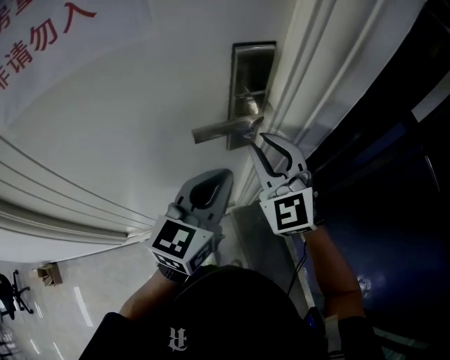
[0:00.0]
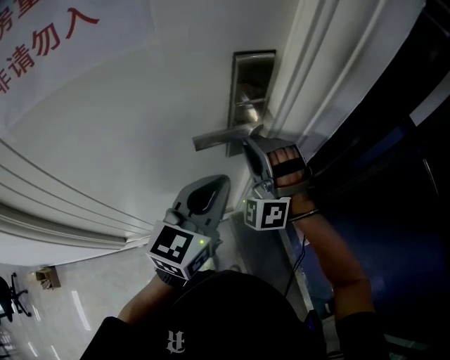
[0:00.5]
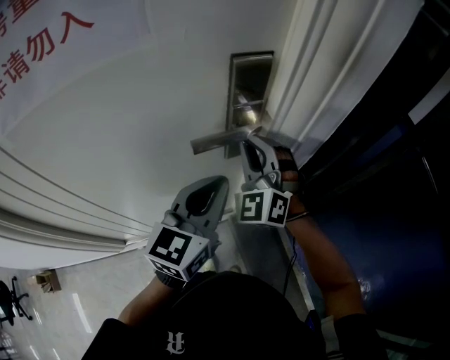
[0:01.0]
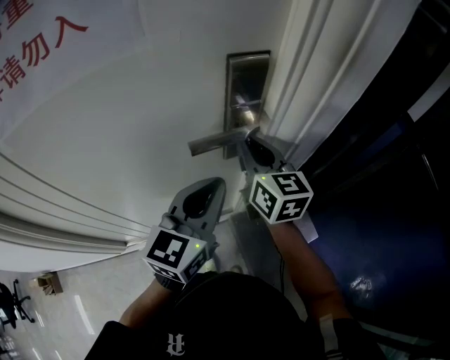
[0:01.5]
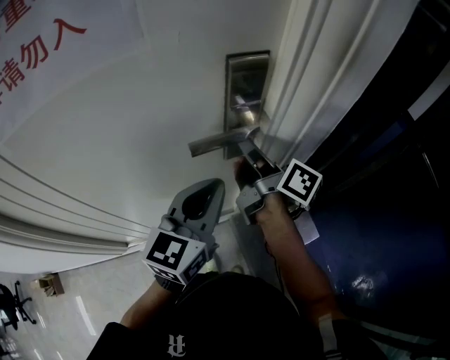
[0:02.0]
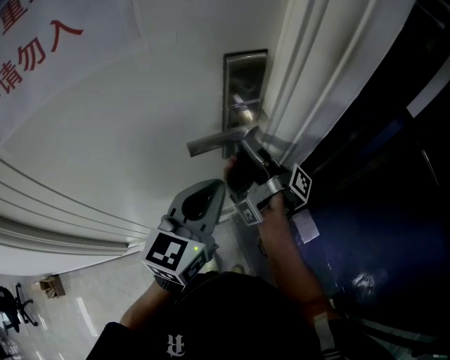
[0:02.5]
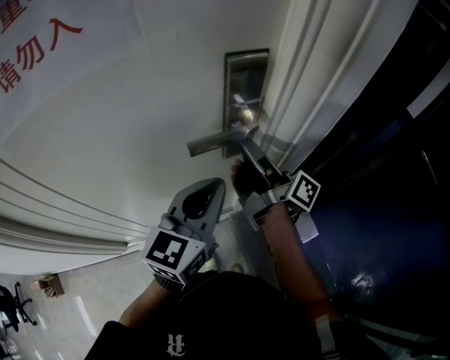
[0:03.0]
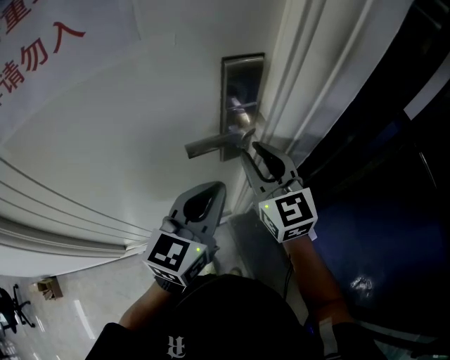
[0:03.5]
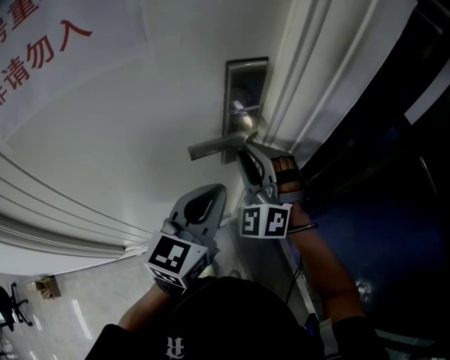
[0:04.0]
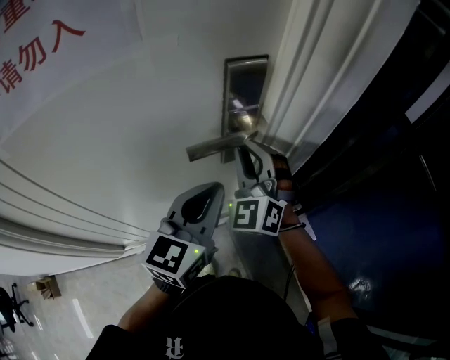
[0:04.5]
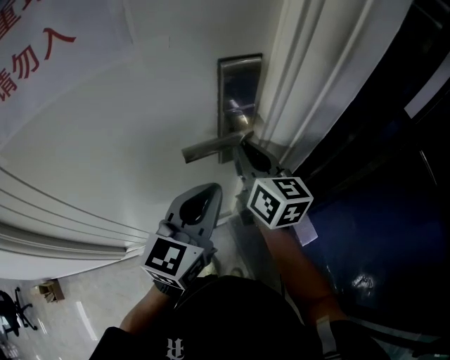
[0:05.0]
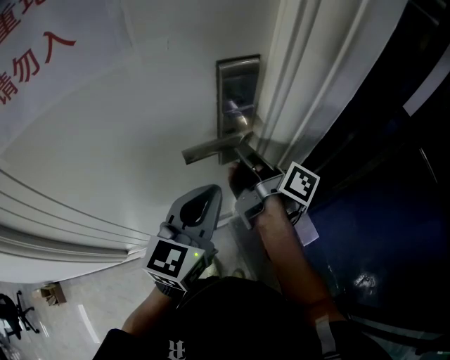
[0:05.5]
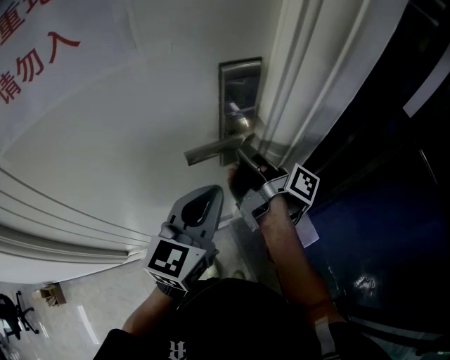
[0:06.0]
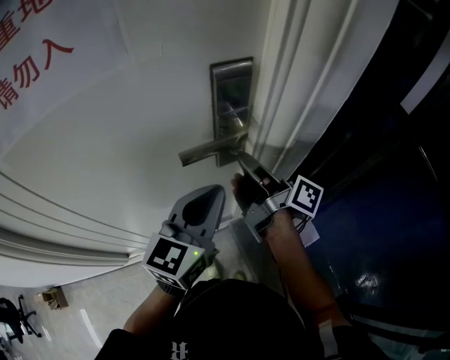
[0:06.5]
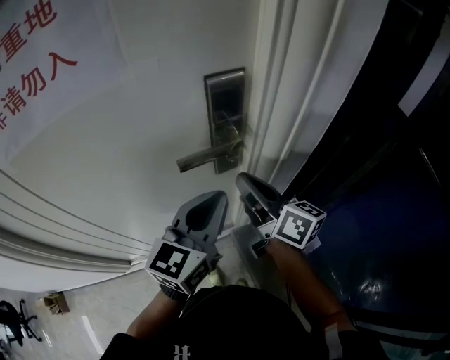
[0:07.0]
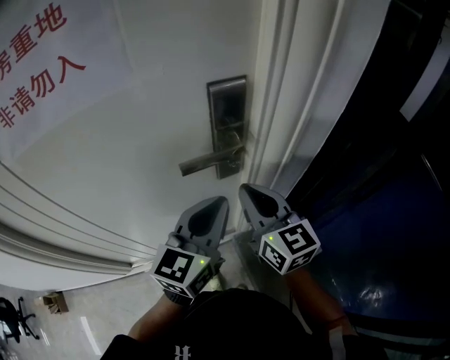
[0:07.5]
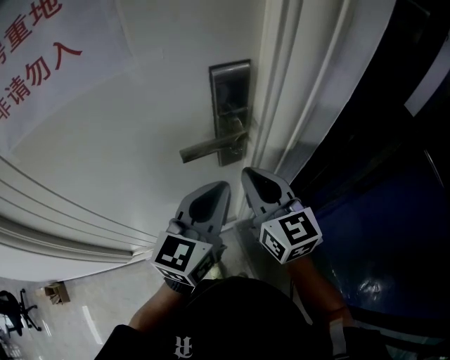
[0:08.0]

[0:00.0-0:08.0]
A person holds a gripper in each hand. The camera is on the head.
0:00.0 to 0:02.0: The right gripper heads forward, covering roughly 5 cm, and twists some 100 degrees clockwise, seen from behind.
0:02.0 to 0:04.0: The right gripper rolls counterclockwise, seen from behind, by about 130 degrees.
0:04.0 to 0:06.0: The right gripper rotates around the line of its fingers by some 150 degrees, clockwise from behind.
0:06.0 to 0:08.0: The right gripper heads backward, covering some 10 cm, and rotates around the line of its fingers by roughly 80 degrees, counterclockwise from behind.

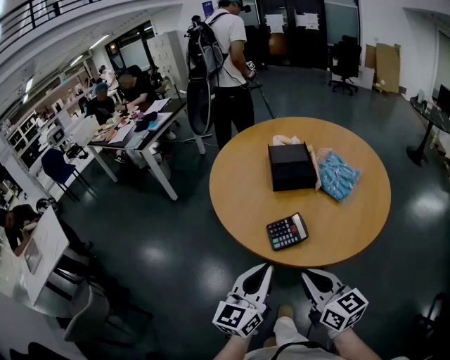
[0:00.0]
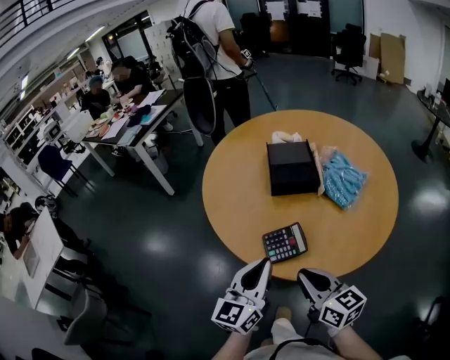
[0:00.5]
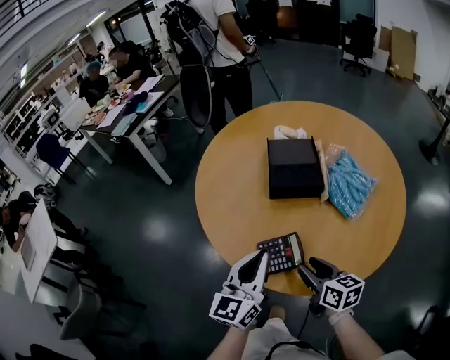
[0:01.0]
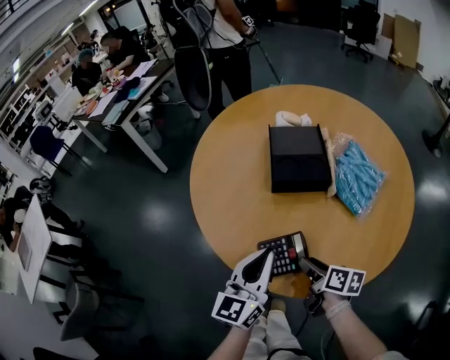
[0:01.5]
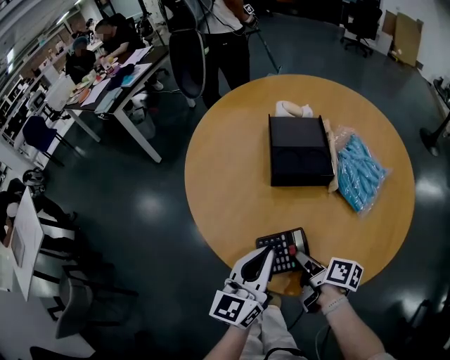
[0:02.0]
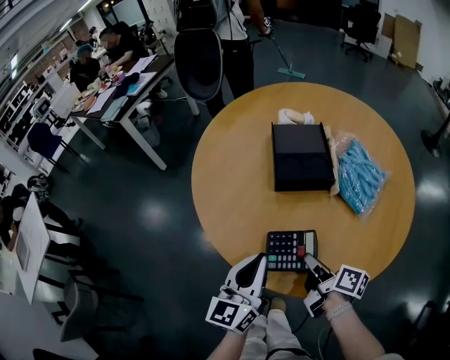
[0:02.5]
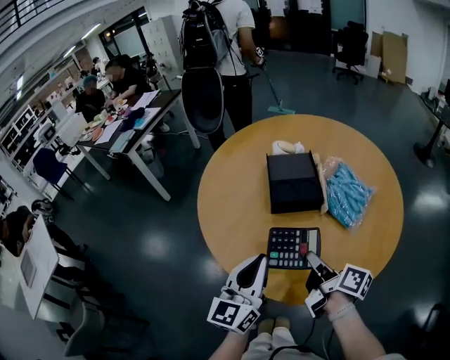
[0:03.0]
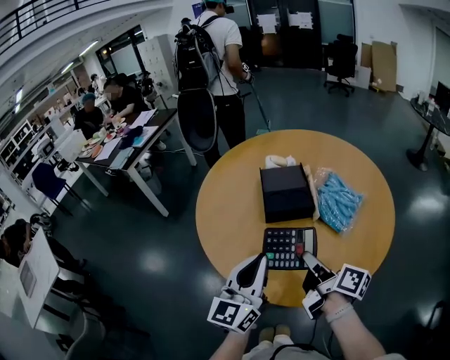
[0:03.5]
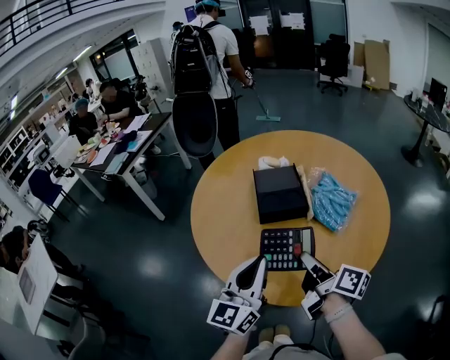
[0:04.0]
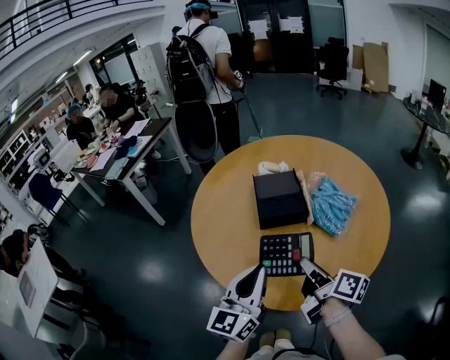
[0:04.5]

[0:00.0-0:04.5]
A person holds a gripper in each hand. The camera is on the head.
0:00.0 to 0:02.0: The grippers both shift forward and downward by approximately 25 cm. The right gripper rolls clockwise, seen from behind, by some 50 degrees, and opens up.
0:02.0 to 0:04.5: The left gripper moves upward, approximately 10 cm; the right gripper shifts roughly 20 cm upward, and rotates some 30 degrees.

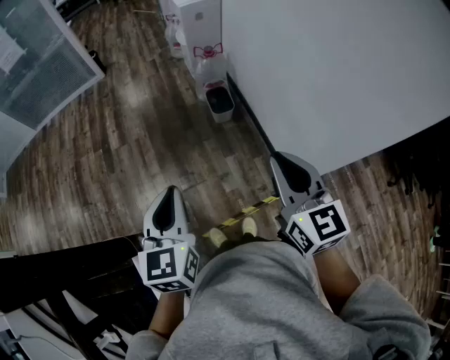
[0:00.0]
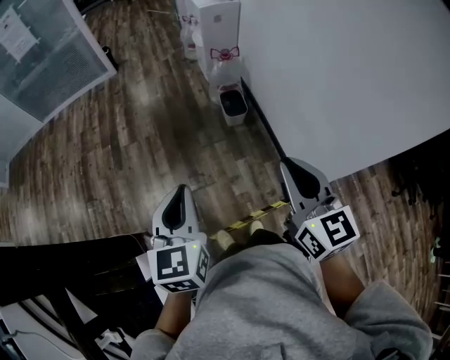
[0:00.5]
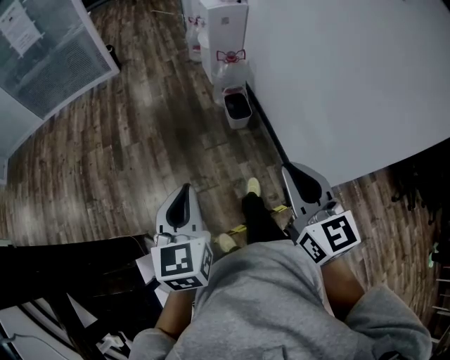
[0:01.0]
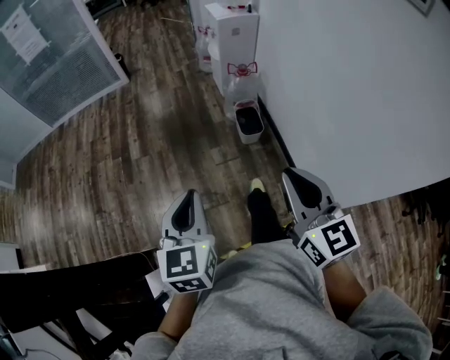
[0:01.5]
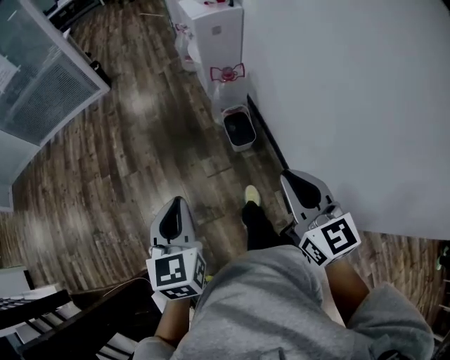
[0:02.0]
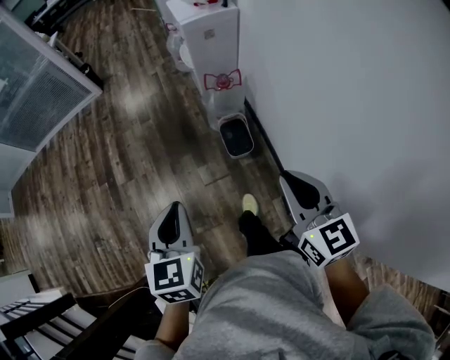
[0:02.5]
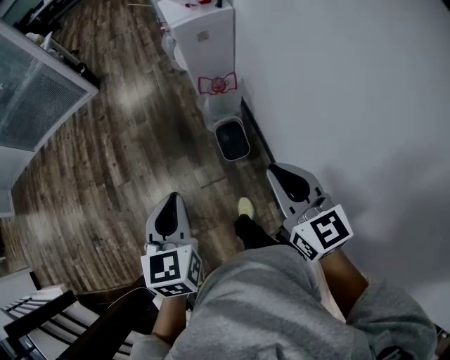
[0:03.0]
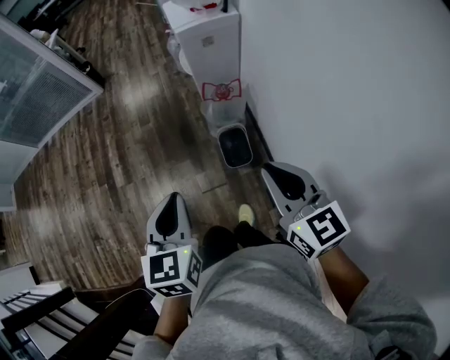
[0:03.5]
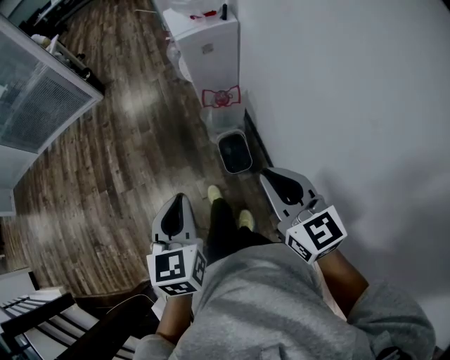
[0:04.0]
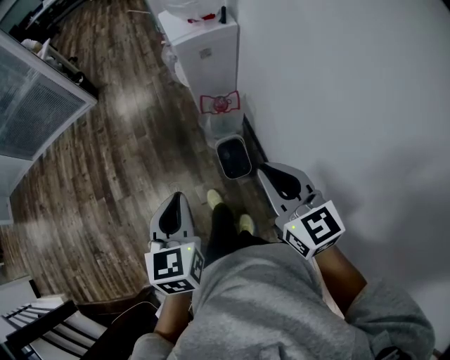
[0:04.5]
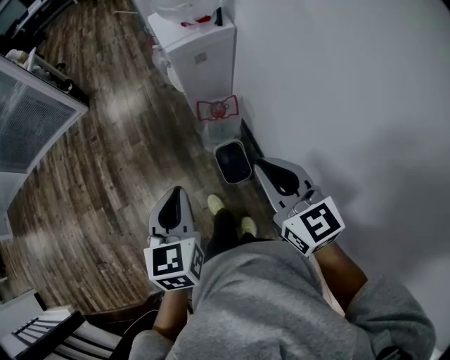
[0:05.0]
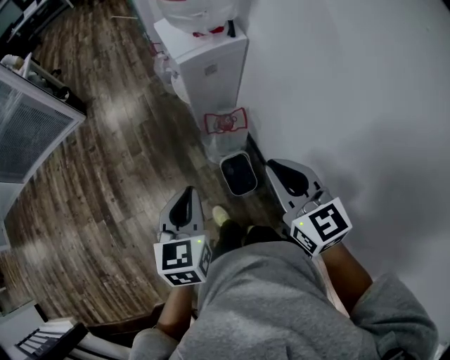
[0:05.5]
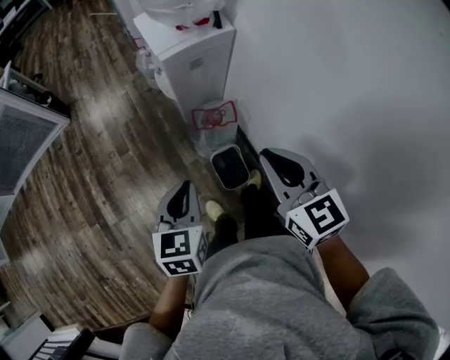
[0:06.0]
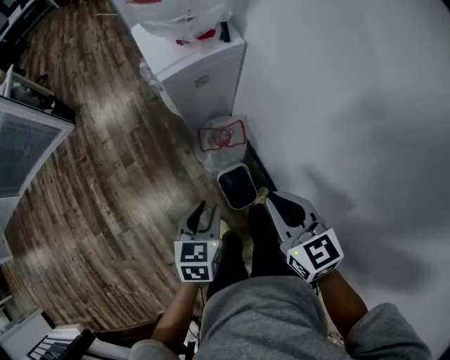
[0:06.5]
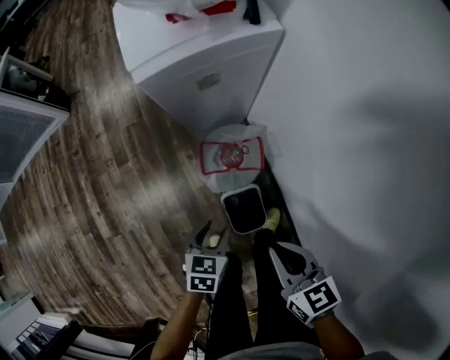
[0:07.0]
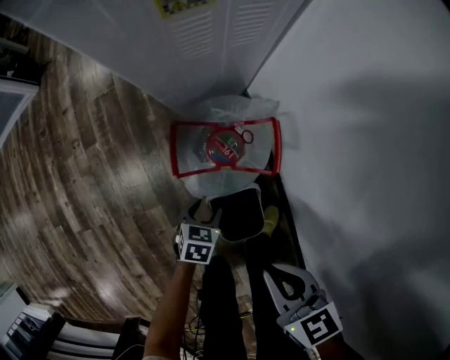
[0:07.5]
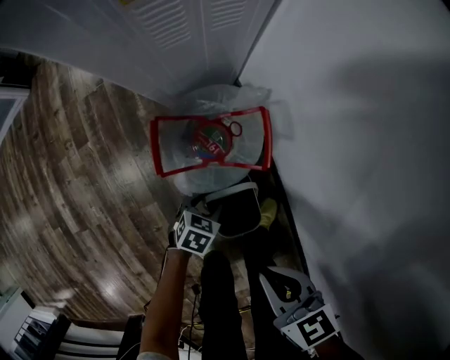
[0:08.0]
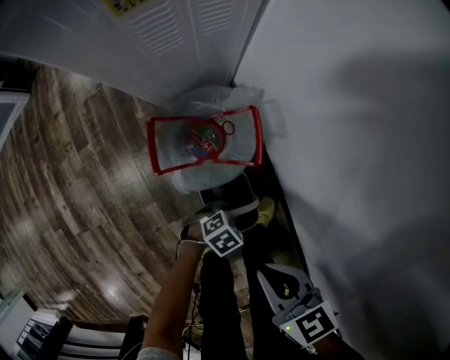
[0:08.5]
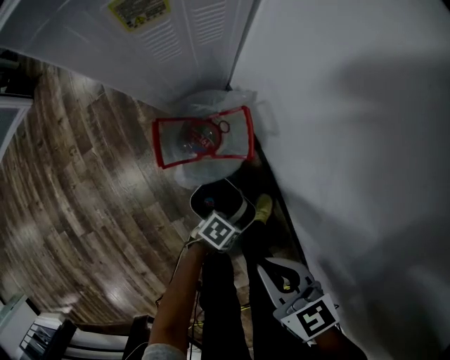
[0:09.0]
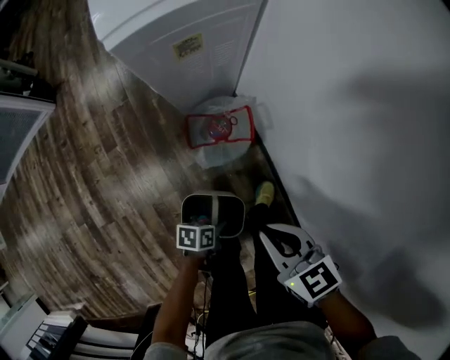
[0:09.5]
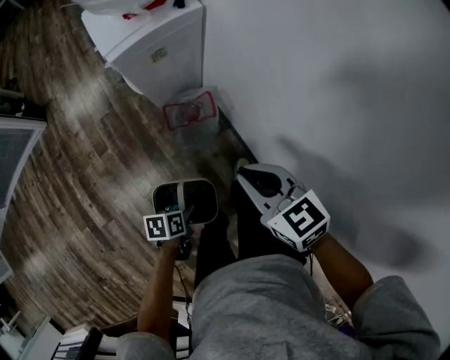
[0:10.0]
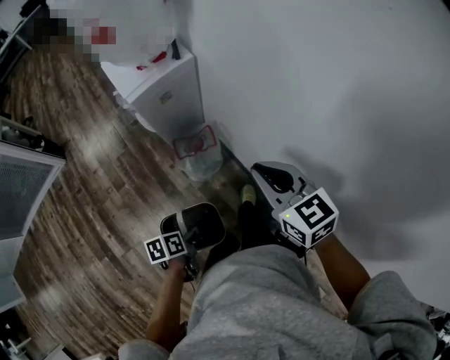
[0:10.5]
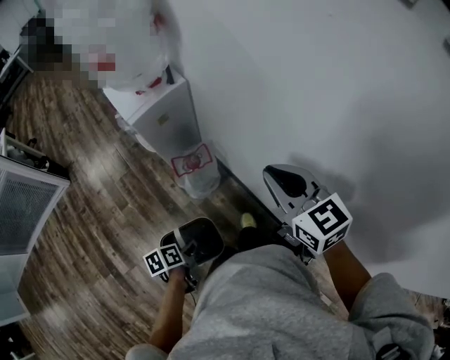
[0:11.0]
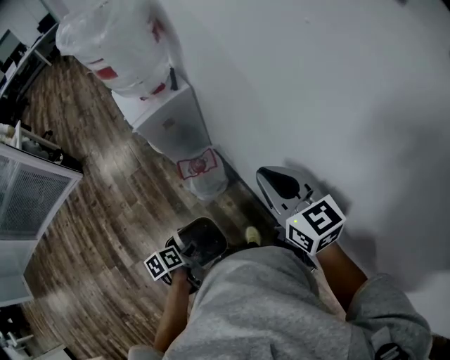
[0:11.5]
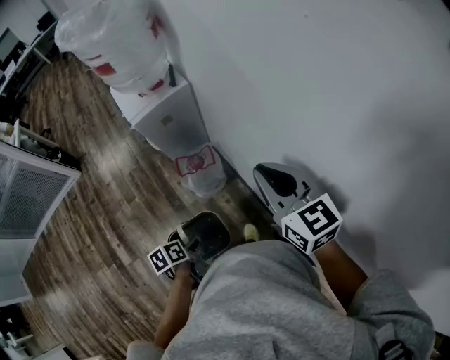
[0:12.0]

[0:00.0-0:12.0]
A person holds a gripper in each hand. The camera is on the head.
0:00.0 to 0:02.0: Both grippers travel together forward, some 25 cm.
0:02.0 to 0:04.0: Both grippers travel together forward and to the right, approximately 25 cm.
0:04.0 to 0:06.0: Both grippers travel together forward, approximately 25 cm.
0:06.0 to 0:08.0: Both grippers move downward, approximately 50 cm. The left gripper turns by some 40 degrees, and opens up. The right gripper swivels roughly 30 degrees.
0:08.0 to 0:10.0: The two grippers go some 35 cm upward. The left gripper swivels about 40 degrees, and closes up.
0:10.0 to 0:12.0: The right gripper shifts roughly 25 cm upward and to the right, and changes its angle by some 20 degrees. Meanwhile the left gripper moves upward, some 15 cm, and swivels about 20 degrees.

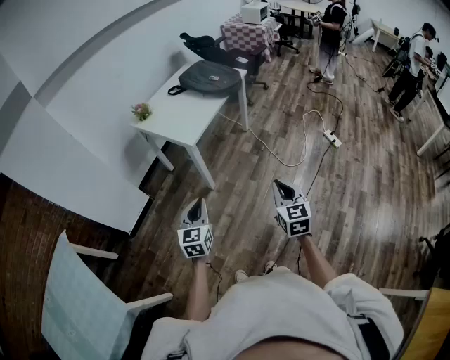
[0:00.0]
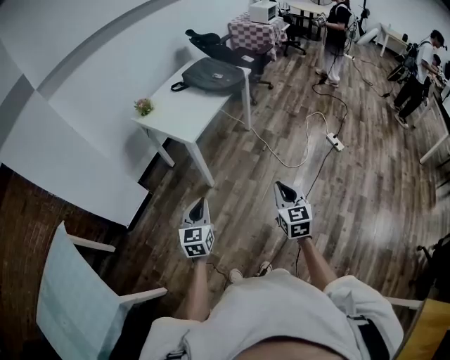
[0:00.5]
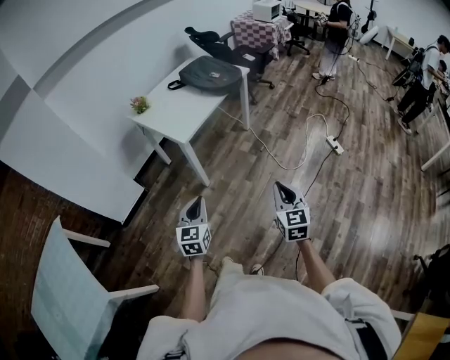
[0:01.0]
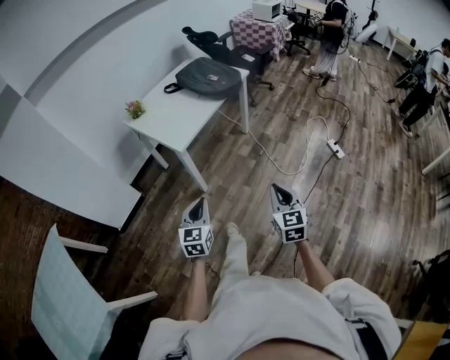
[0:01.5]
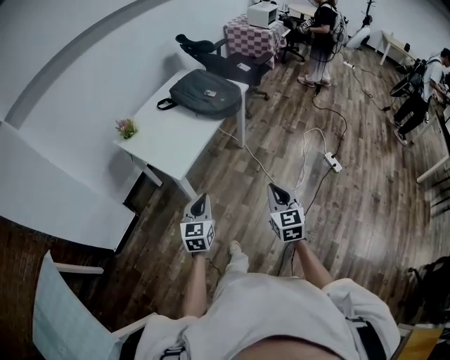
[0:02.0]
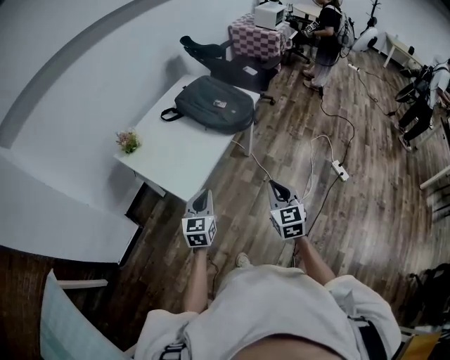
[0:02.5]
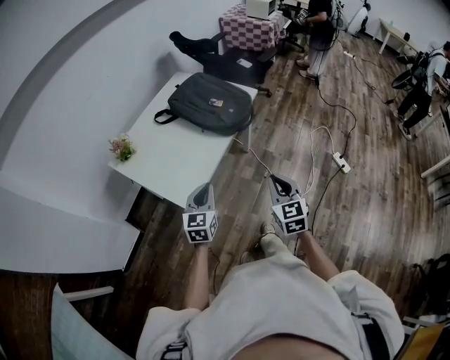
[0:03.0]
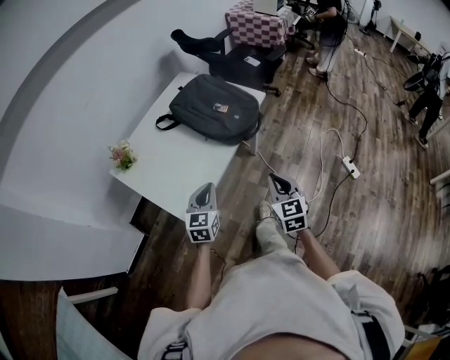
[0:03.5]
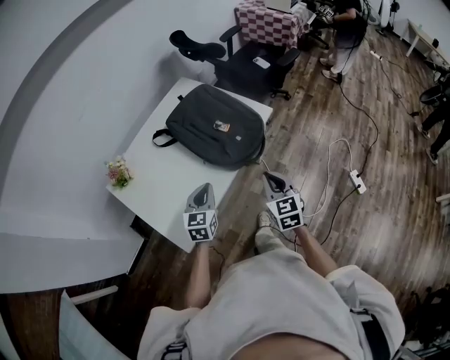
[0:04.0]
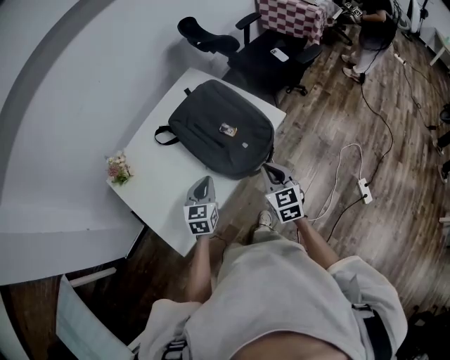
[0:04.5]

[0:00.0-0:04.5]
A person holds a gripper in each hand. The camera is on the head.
0:00.0 to 0:02.0: The two grippers go roughly 25 cm forward.
0:02.0 to 0:04.5: The two grippers travel together, forward, approximately 50 cm.
